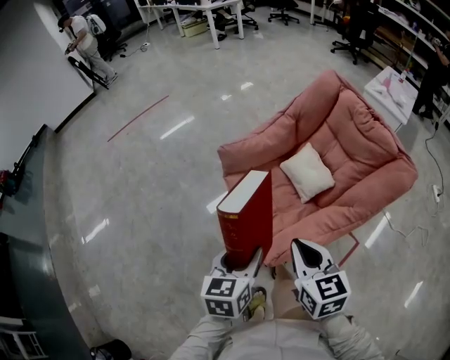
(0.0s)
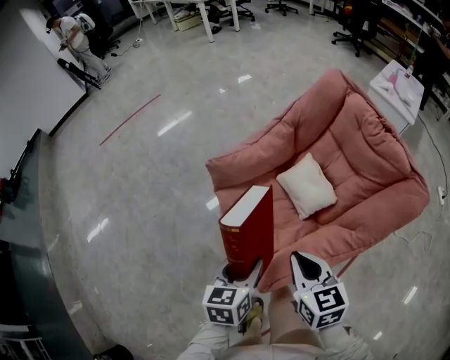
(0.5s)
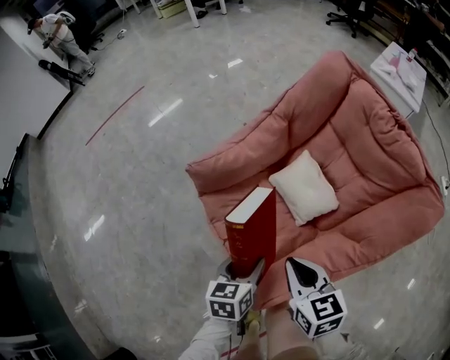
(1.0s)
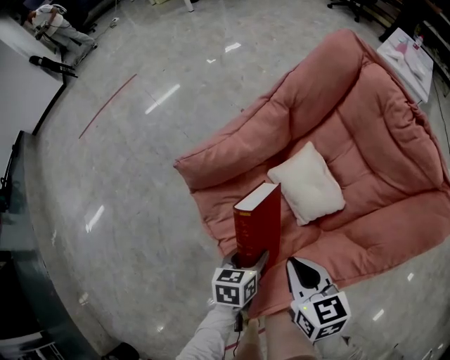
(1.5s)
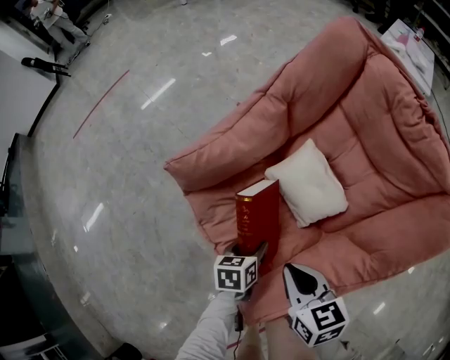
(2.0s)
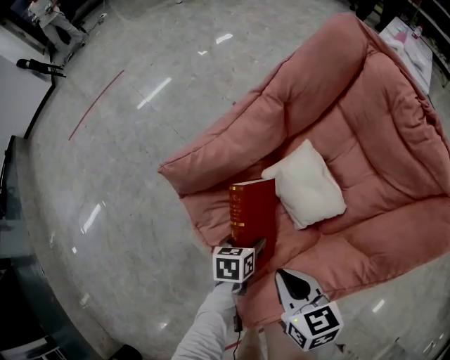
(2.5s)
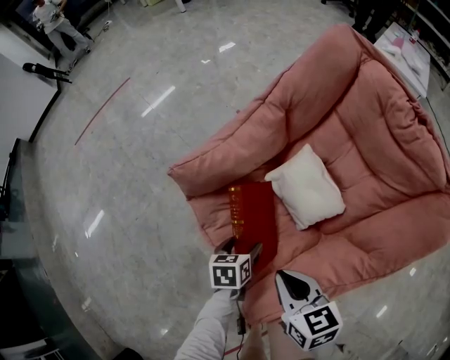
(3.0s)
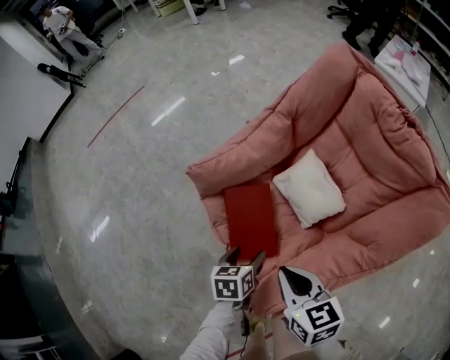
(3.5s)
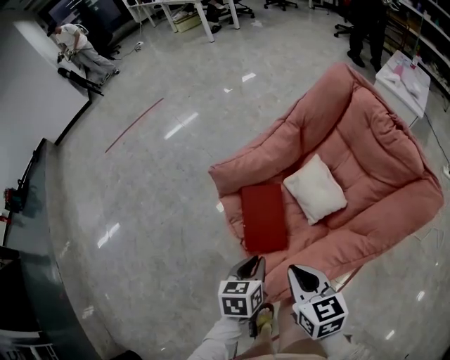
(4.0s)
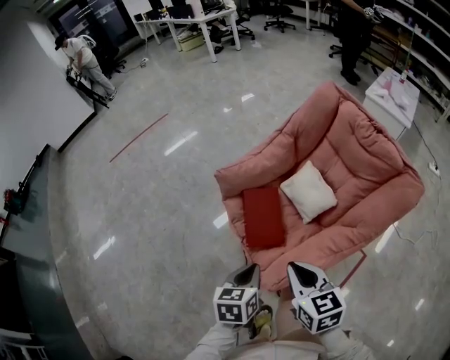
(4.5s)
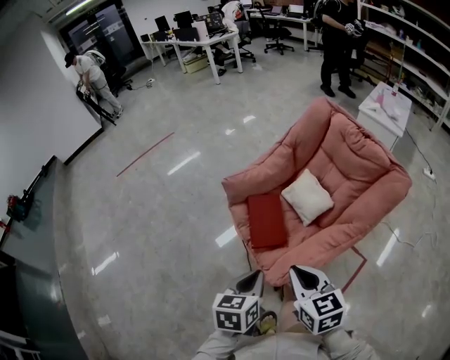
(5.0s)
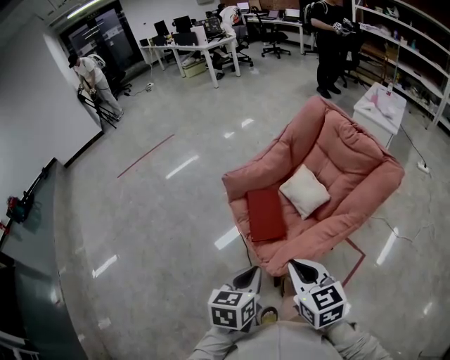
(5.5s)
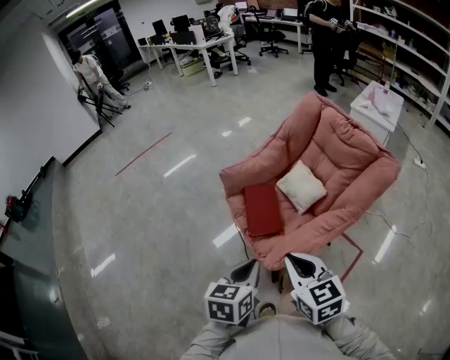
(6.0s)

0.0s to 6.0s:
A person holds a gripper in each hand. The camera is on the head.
0.0s to 2.0s: The grippers both shift downward and forward by approximately 30 cm. The left gripper changes its angle by some 30 degrees.
2.0s to 4.0s: The left gripper moves upward and backward, approximately 20 cm, and closes; the right gripper goes some 15 cm upward and backward.
4.0s to 6.0s: Both grippers move backward and upward, approximately 20 cm.

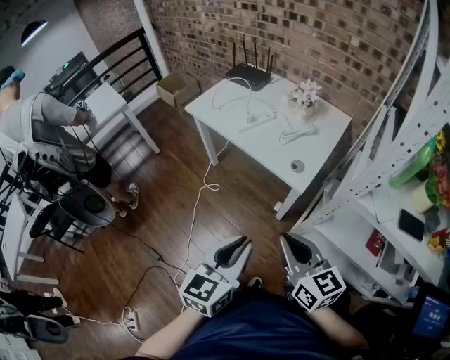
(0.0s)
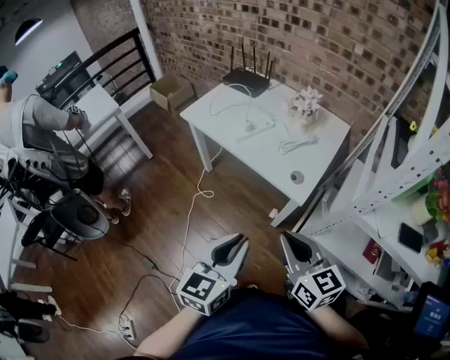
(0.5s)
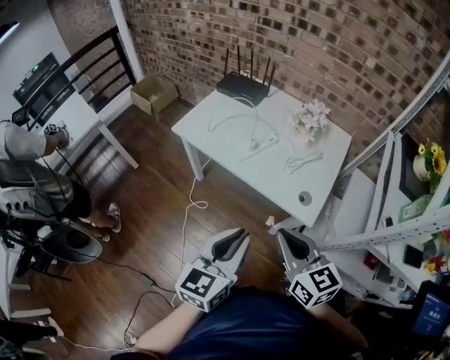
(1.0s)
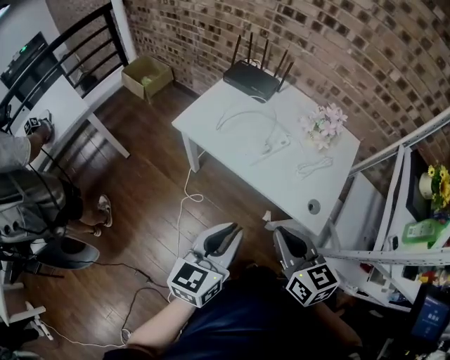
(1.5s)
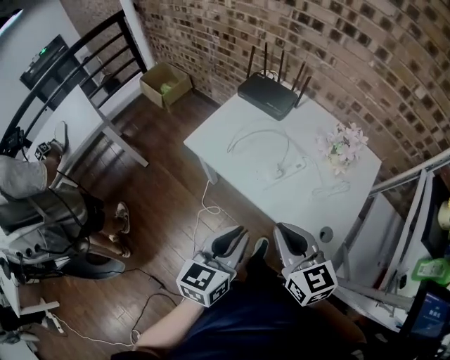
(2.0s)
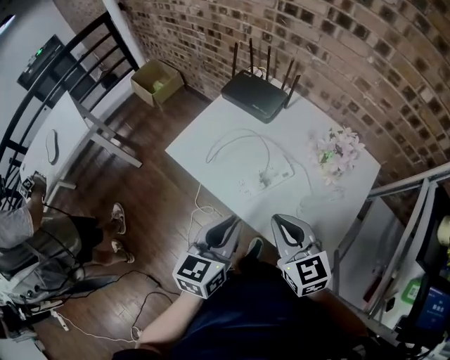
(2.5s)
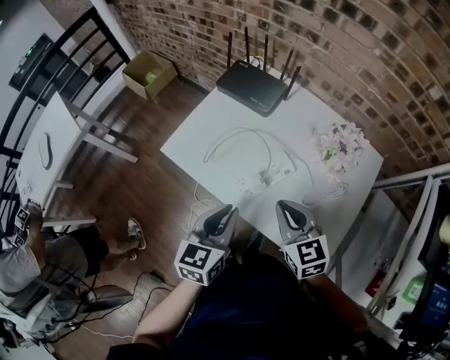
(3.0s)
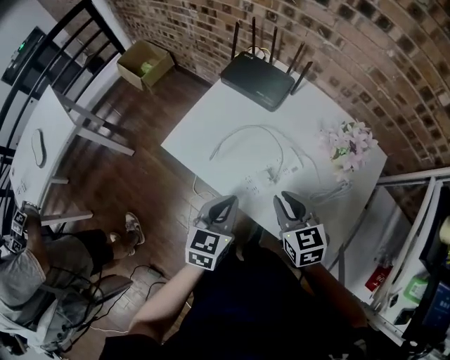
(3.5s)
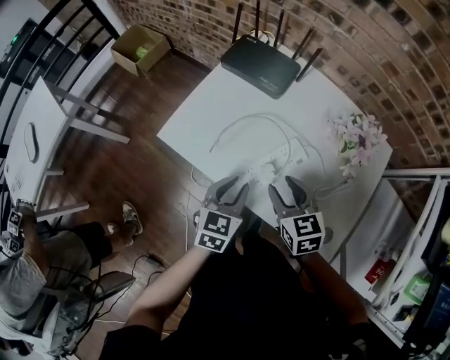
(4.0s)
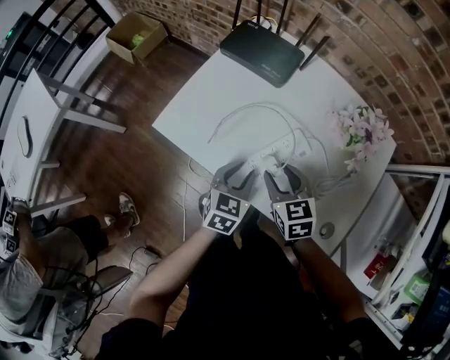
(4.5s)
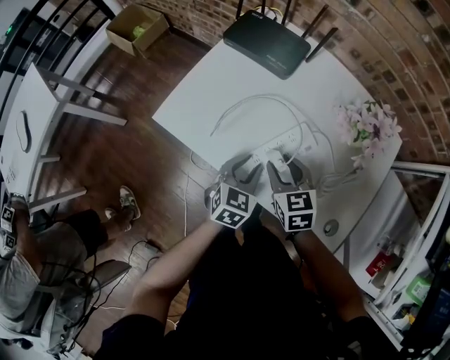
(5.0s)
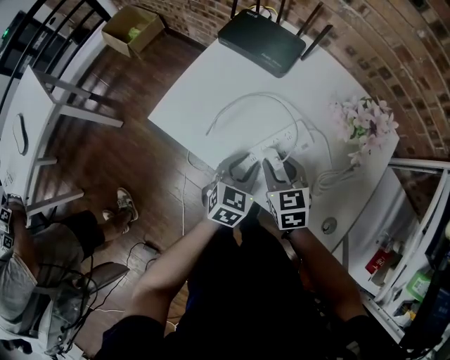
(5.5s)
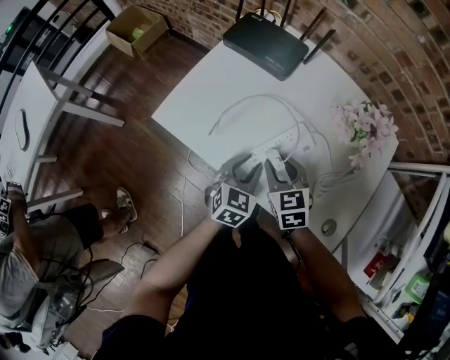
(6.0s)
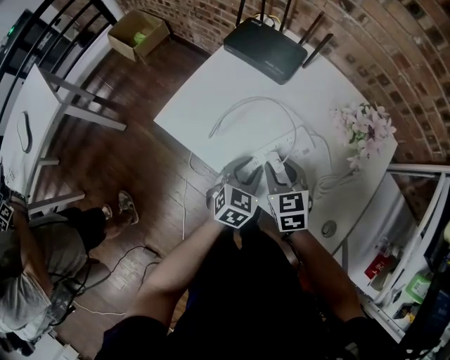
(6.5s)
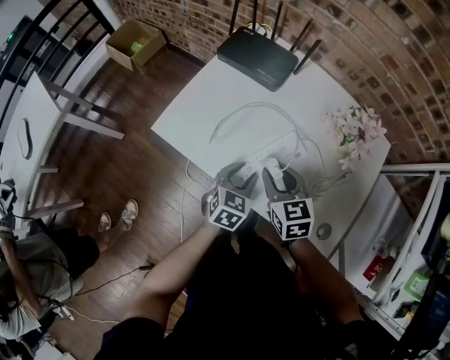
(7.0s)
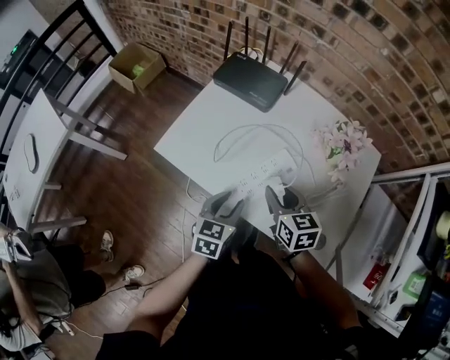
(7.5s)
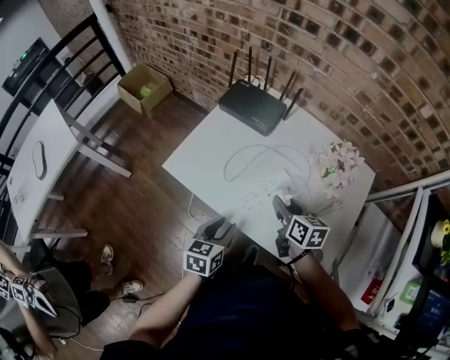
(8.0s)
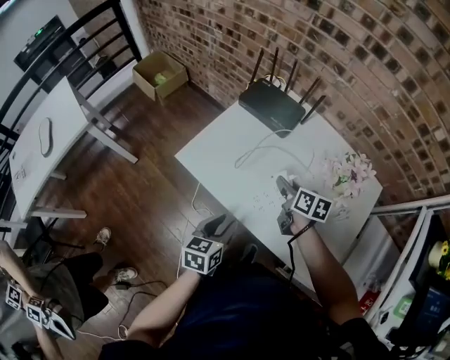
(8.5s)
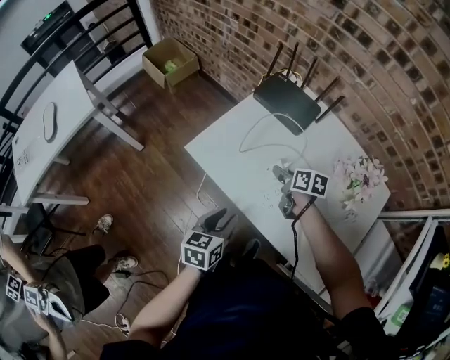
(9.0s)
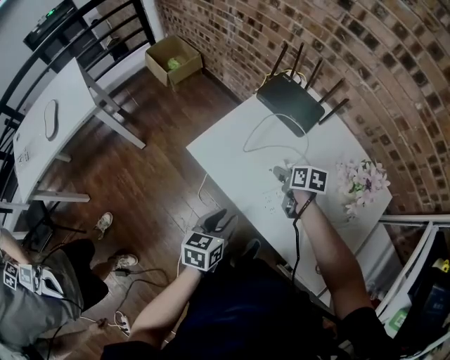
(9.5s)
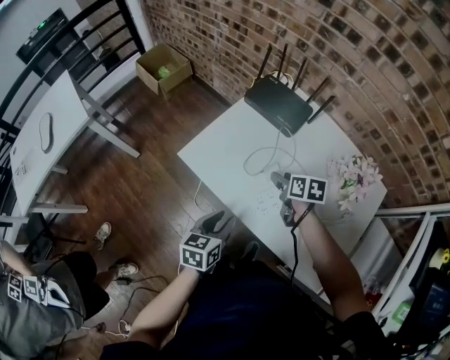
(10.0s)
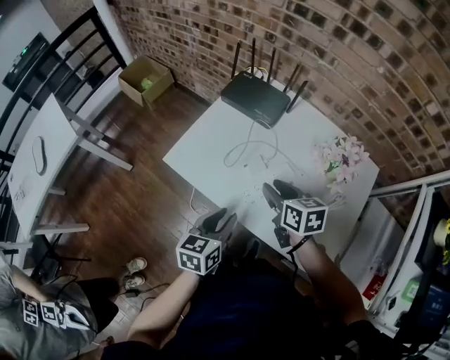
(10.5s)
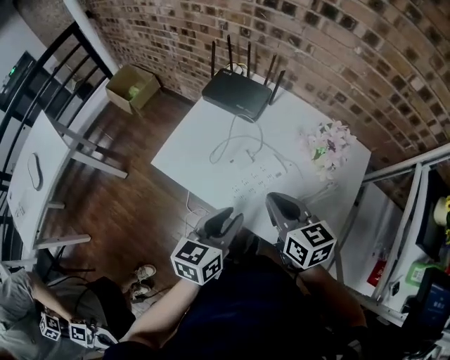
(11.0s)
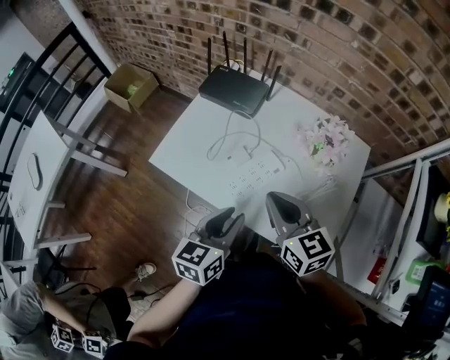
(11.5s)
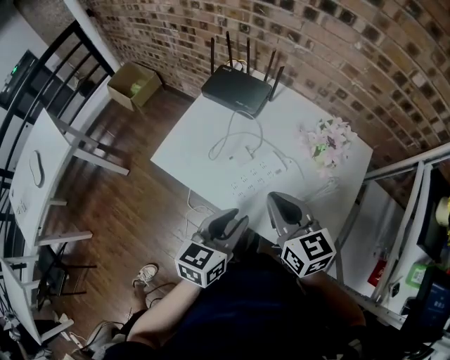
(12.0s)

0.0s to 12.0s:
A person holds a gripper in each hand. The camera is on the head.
0.0s to 2.0s: The two grippers go some 40 cm forward and to the left.
2.0s to 4.0s: Both grippers travel together forward and downward, some 25 cm. The left gripper rotates about 20 degrees, while the right gripper swivels about 20 degrees, and opens.
4.0s to 6.0s: The grippers both shift downward by some 5 cm.
6.0s to 8.0s: The left gripper goes roughly 10 cm backward and upward, and rotates about 30 degrees; the right gripper travels to the right and upward by roughly 10 cm, and swivels approximately 40 degrees.
8.0s to 10.0s: The left gripper travels to the left by approximately 5 cm. Meanwhile the right gripper is displaced forward, downward and to the left by about 15 cm, turns by about 20 degrees, and opens its fingers.
10.0s to 12.0s: The right gripper heads upward and backward, covering some 25 cm, swivels approximately 40 degrees, and closes. The left gripper shifts some 15 cm upward and to the right, and rotates roughly 20 degrees.

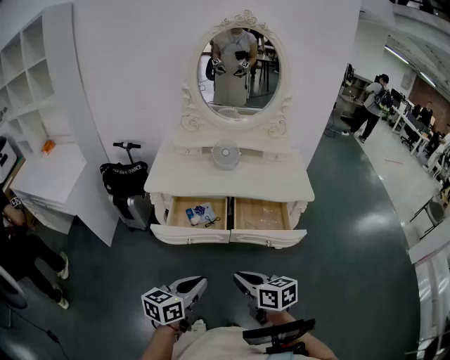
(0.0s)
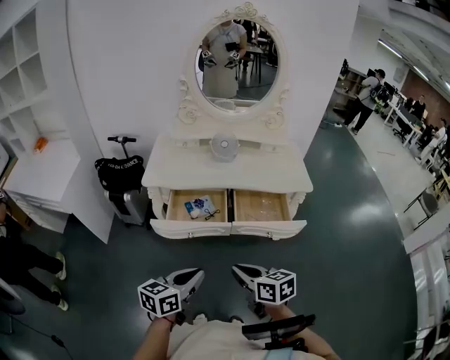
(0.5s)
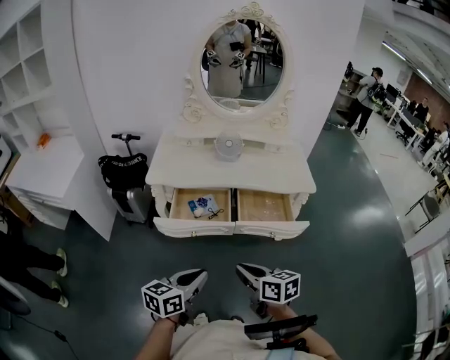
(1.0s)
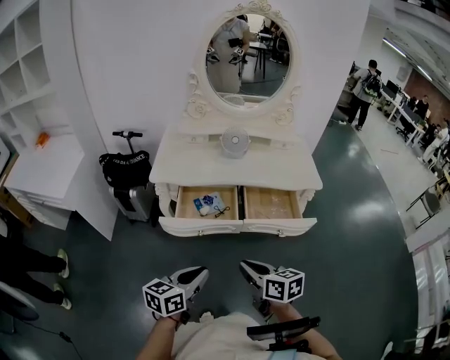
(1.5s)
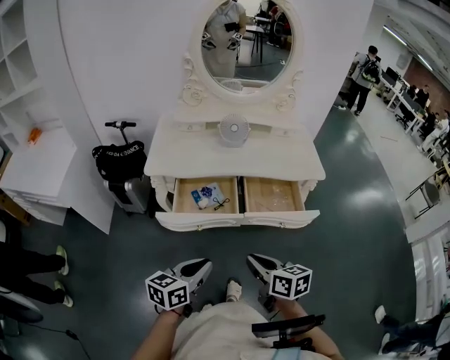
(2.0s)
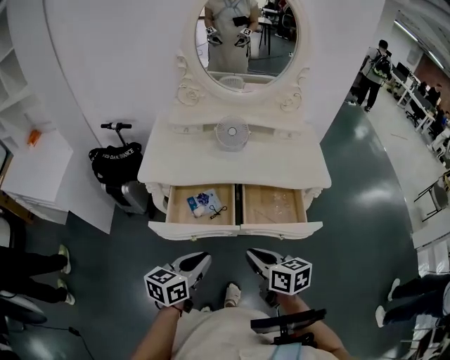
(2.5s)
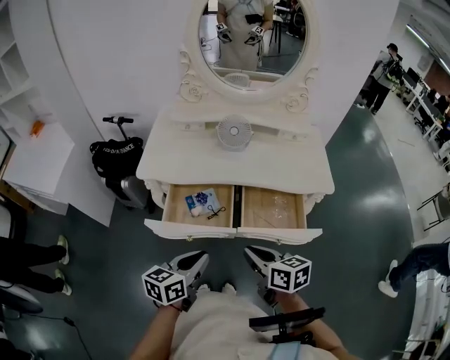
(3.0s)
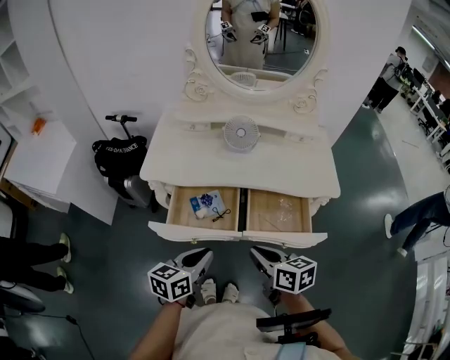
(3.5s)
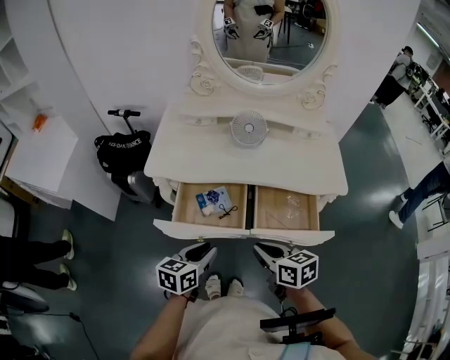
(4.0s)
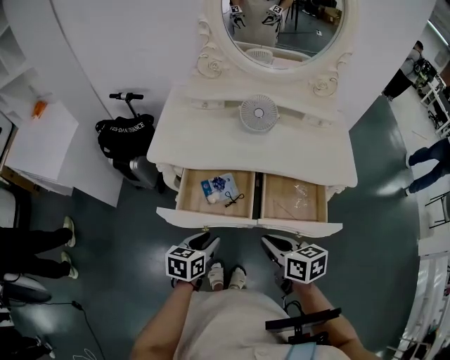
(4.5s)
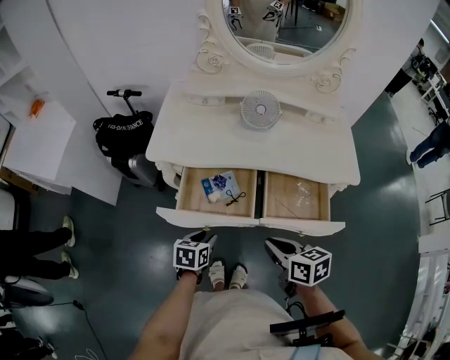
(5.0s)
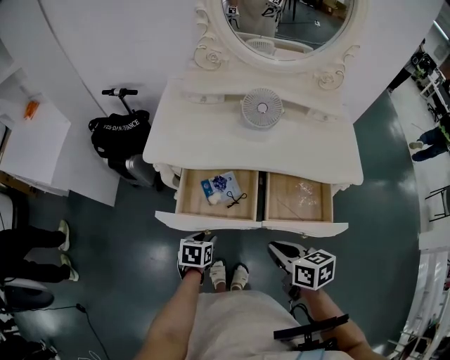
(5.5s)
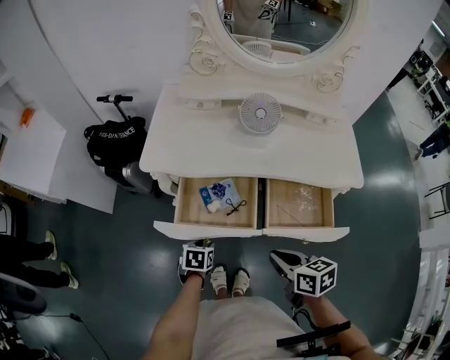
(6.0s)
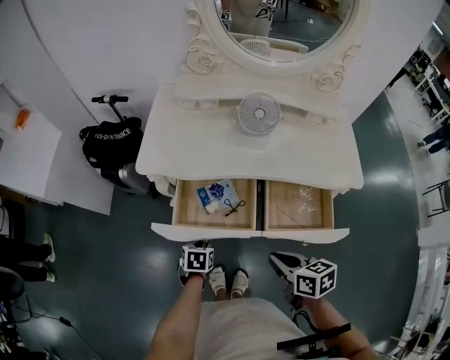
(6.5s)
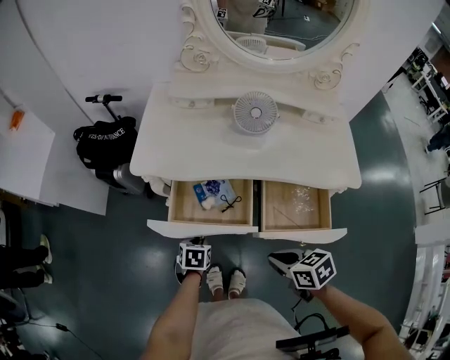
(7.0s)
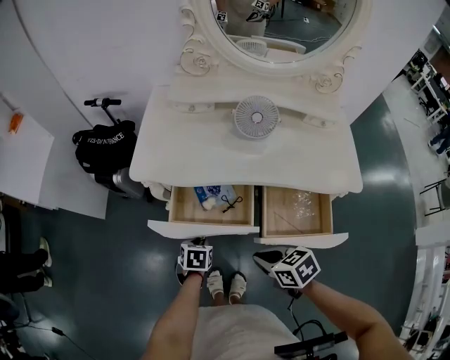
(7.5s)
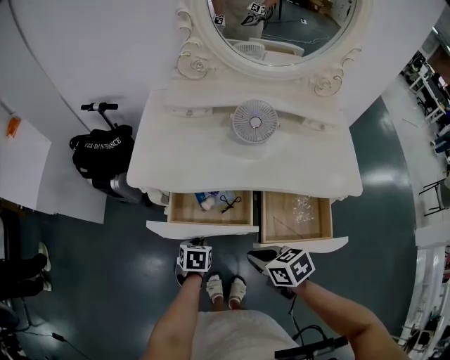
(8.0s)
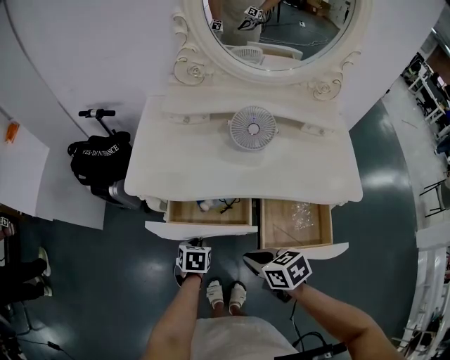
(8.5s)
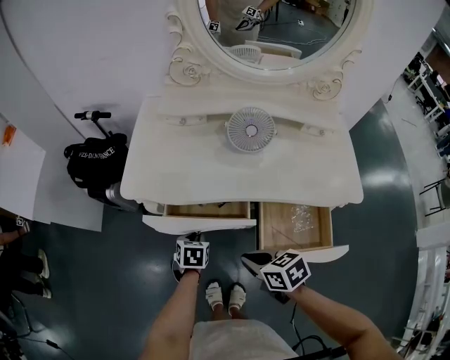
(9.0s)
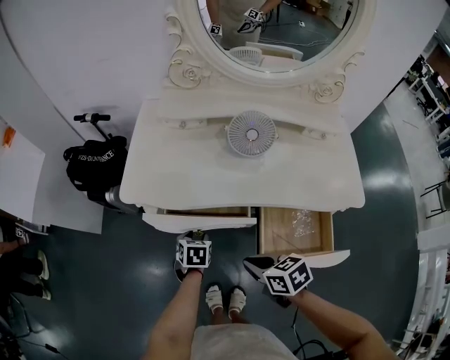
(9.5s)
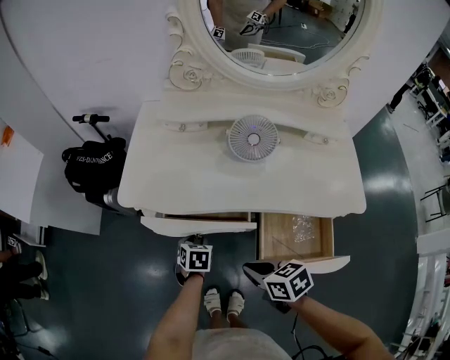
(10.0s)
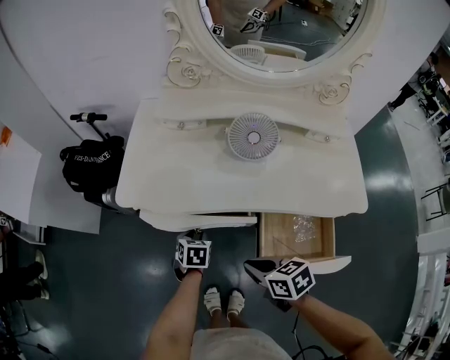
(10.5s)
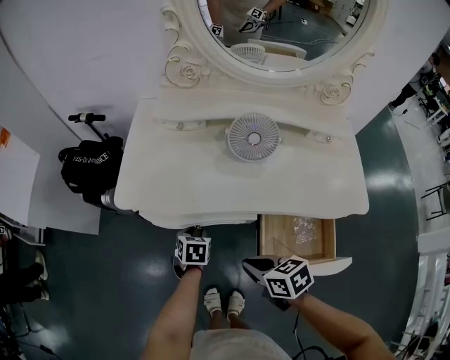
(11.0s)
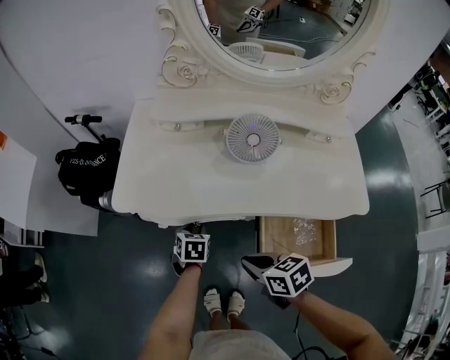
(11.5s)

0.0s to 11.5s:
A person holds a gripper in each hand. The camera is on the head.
0.0s to 2.0s: The left gripper is displaced to the left and forward by approximately 10 cm, while the right gripper changes place by about 5 cm.
2.0s to 4.0s: Both grippers travel together forward, roughly 15 cm.
4.0s to 6.0s: The right gripper ends up about 5 cm from where it was. Meanwhile the left gripper is displaced downward by about 20 cm, and tips its fingers downward by approximately 30 degrees.
6.0s to 7.5s: The left gripper moves roughly 5 cm, while the right gripper changes place by approximately 5 cm, and rotates approximately 20 degrees.
7.5s to 9.5s: The two grippers go approximately 10 cm forward. The left gripper opens up.
9.5s to 11.5s: The left gripper is displaced forward by about 5 cm.
